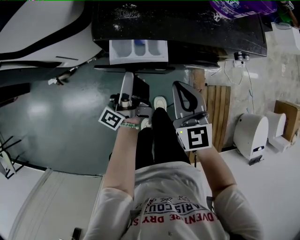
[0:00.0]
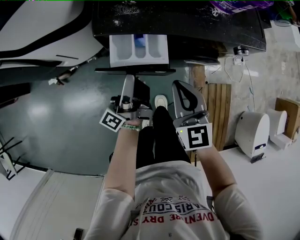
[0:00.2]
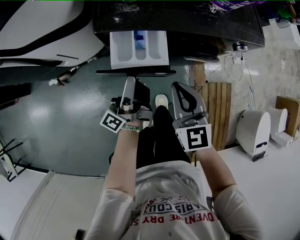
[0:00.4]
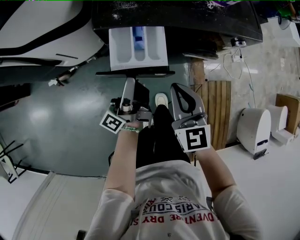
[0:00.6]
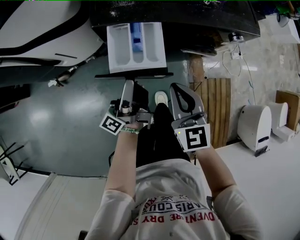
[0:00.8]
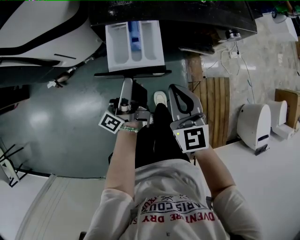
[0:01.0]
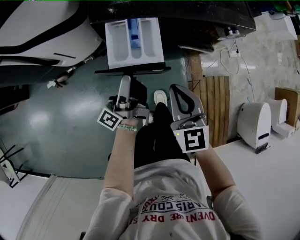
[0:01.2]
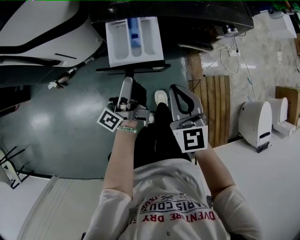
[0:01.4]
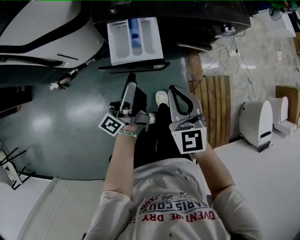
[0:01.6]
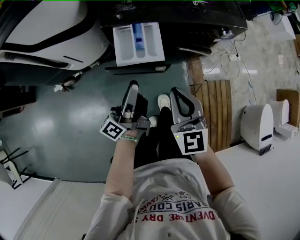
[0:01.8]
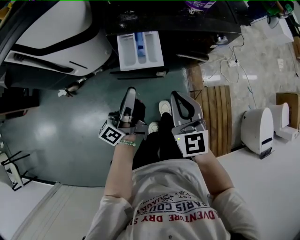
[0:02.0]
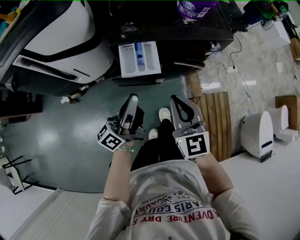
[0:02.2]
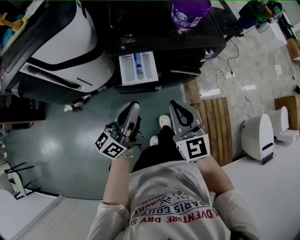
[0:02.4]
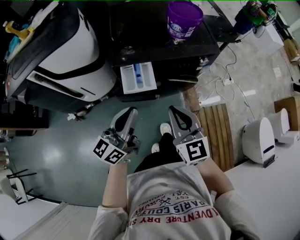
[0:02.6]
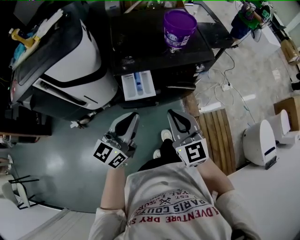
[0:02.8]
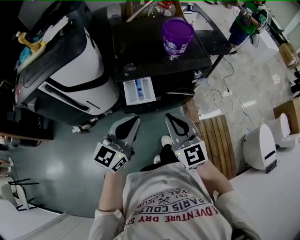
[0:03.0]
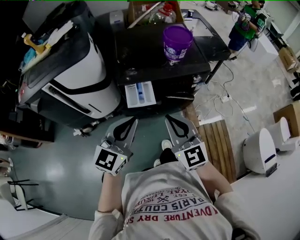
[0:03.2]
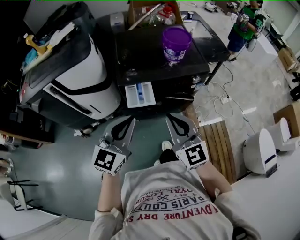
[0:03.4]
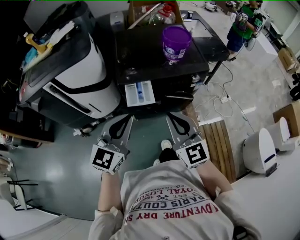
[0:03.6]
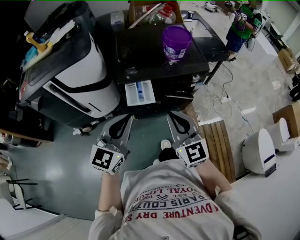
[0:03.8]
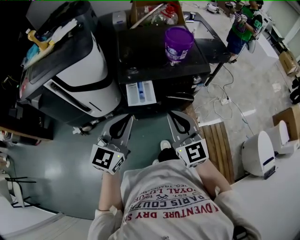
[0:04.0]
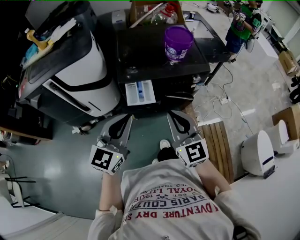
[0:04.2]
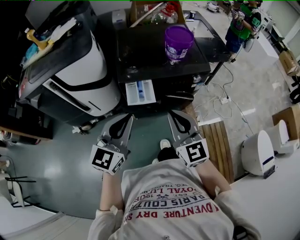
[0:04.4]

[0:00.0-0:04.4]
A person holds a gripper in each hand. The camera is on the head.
0:00.0 to 0:01.4: Both grippers travel together backward, some 10 cm.
0:01.4 to 0:03.0: The two grippers go approximately 25 cm upward. The left gripper rotates around the line of its fingers by approximately 70 degrees, clockwise from behind, and closes its fingers.
0:03.0 to 0:04.4: There are only small adjustments of the grippers.

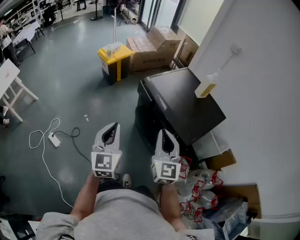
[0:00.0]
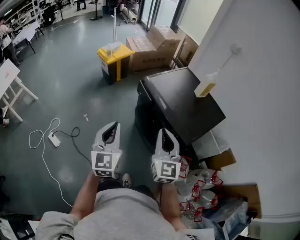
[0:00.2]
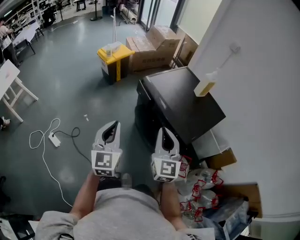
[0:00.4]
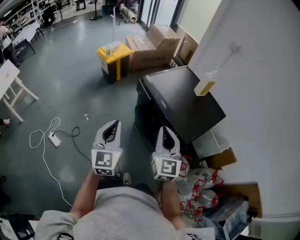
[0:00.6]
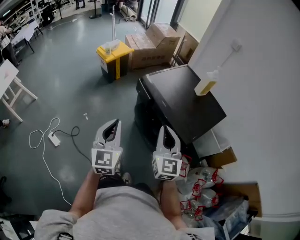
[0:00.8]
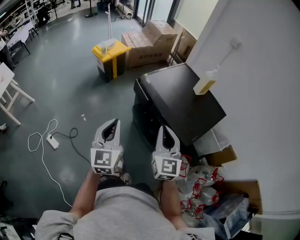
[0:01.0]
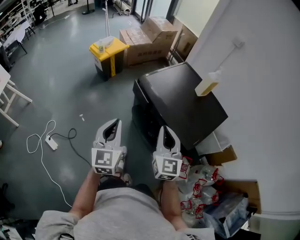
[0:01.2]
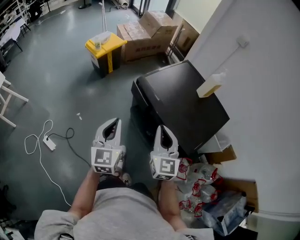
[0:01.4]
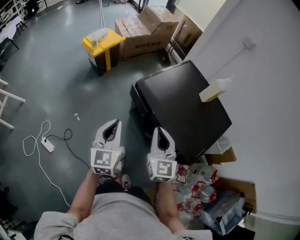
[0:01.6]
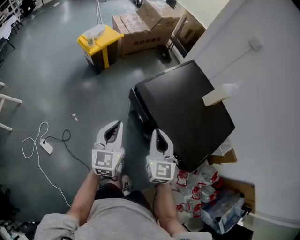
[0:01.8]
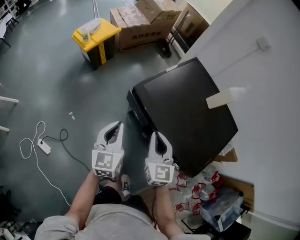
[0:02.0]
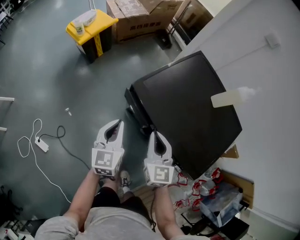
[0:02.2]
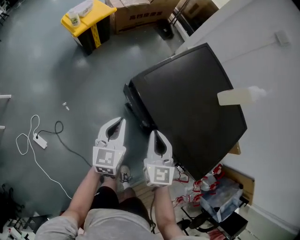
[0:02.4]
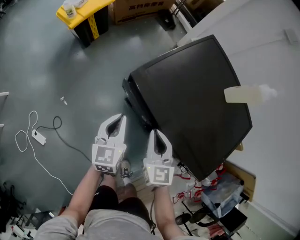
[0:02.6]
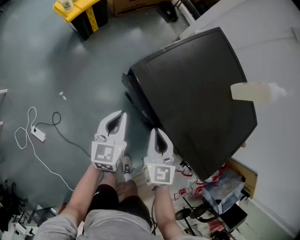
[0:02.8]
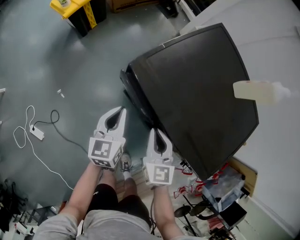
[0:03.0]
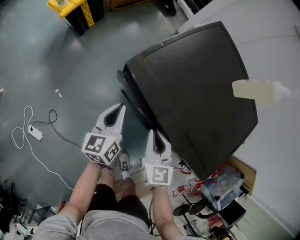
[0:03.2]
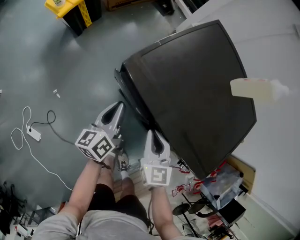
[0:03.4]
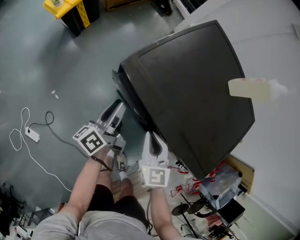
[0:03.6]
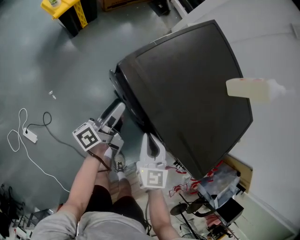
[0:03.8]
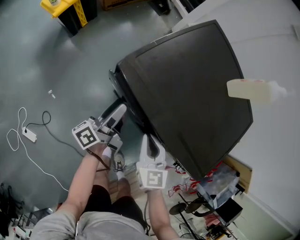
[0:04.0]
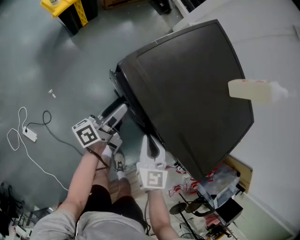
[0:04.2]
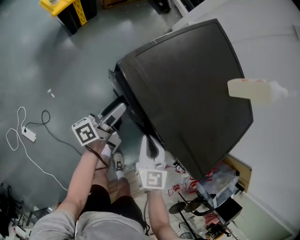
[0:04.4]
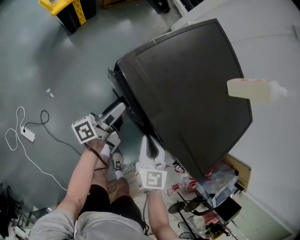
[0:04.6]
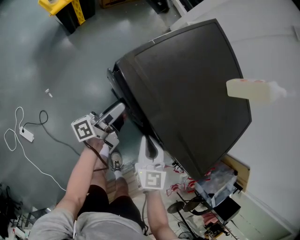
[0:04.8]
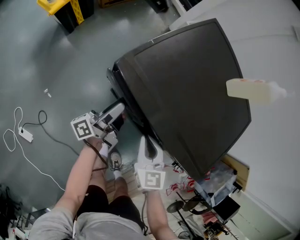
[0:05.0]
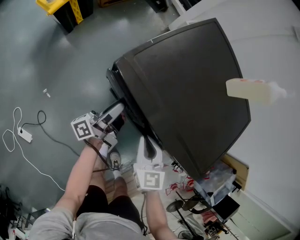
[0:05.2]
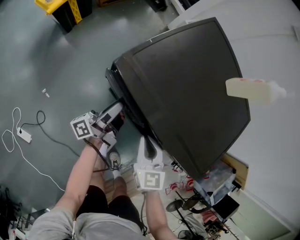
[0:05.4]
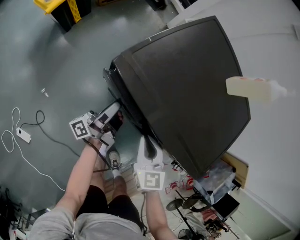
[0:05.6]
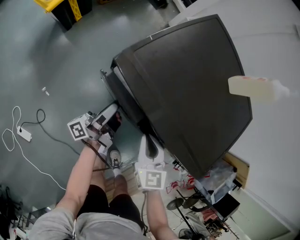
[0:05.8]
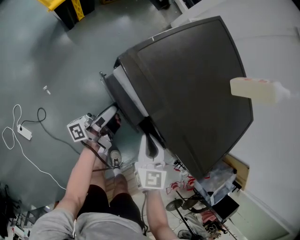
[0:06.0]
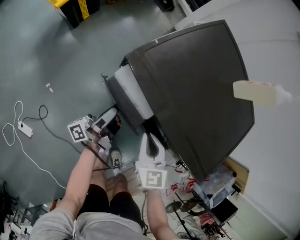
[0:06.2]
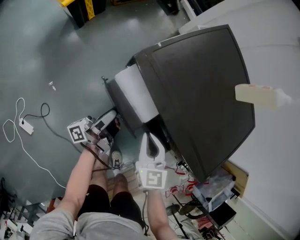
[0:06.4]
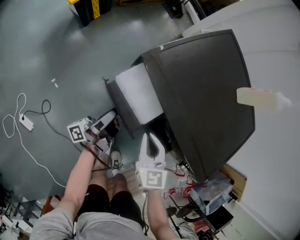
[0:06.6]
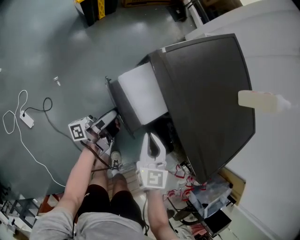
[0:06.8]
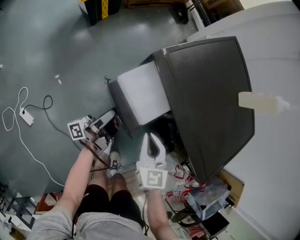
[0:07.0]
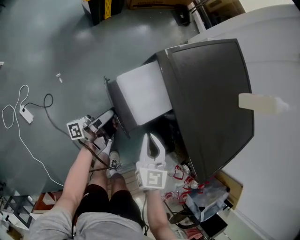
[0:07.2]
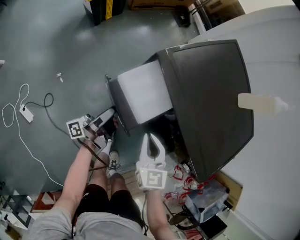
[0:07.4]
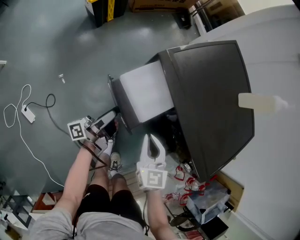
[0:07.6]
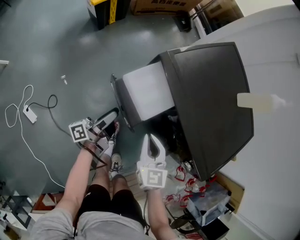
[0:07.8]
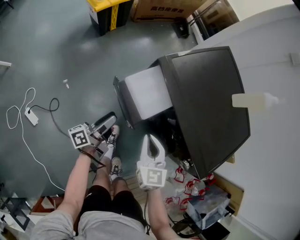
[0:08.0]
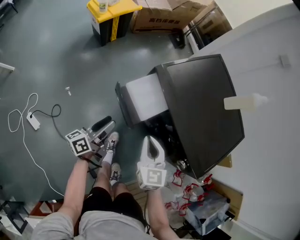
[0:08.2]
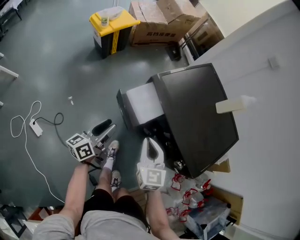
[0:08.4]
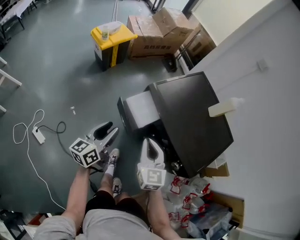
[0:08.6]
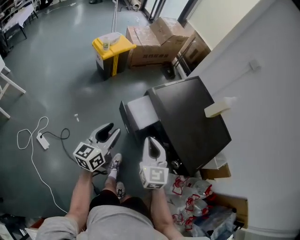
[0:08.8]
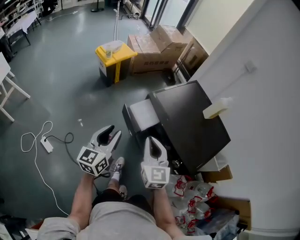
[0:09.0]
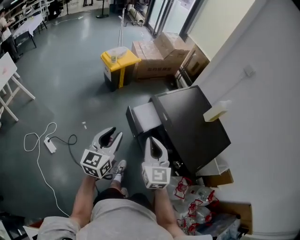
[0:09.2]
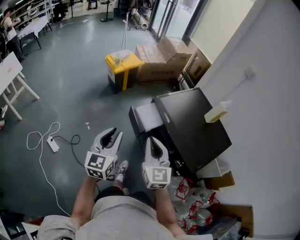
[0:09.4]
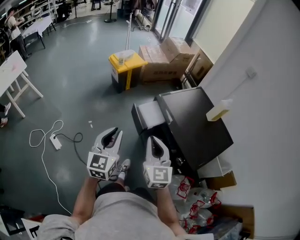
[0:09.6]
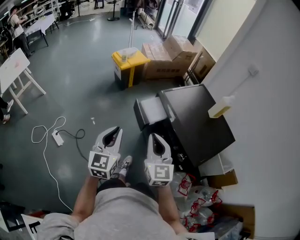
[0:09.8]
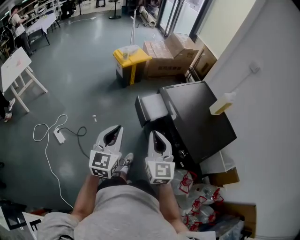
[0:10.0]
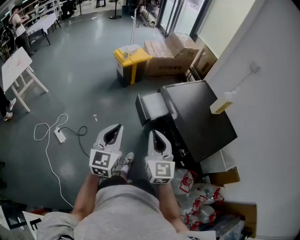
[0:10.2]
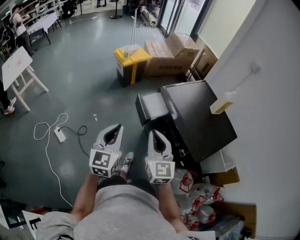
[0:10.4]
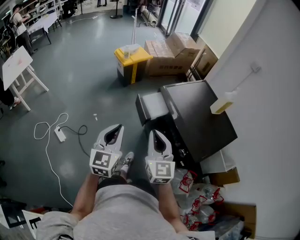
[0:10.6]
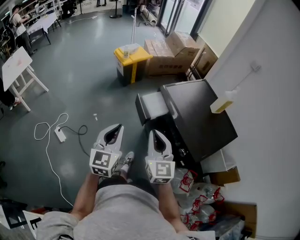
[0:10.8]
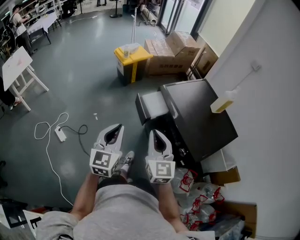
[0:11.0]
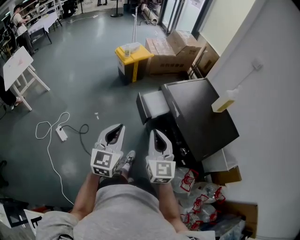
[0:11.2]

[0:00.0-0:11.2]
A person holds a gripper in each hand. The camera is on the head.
0:00.0 to 0:01.6: The left gripper heads forward, covering roughly 20 cm, while the right gripper shifts about 20 cm forward and downward.
0:01.6 to 0:03.2: The left gripper shifts some 30 cm downward and forward, and turns by roughly 30 degrees. Meanwhile the right gripper is displaced downward by approximately 25 cm.
0:03.2 to 0:04.8: The left gripper rotates around the line of its fingers by roughly 50 degrees, counterclockwise from behind, and opens up.
0:04.8 to 0:06.4: The left gripper closes up.
0:06.4 to 0:08.0: Both grippers travel together backward and to the left, some 15 cm. The left gripper changes its angle by approximately 30 degrees.
0:08.0 to 0:09.6: The grippers both shift upward and backward by roughly 35 cm. The left gripper twists about 70 degrees clockwise, seen from behind, and closes its fingers, while the right gripper rotates some 20 degrees.
0:09.6 to 0:11.2: The grippers move only a little.

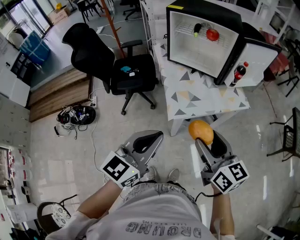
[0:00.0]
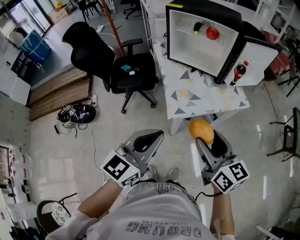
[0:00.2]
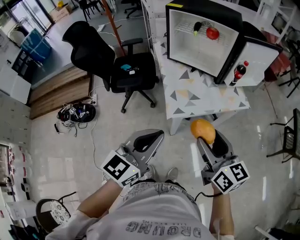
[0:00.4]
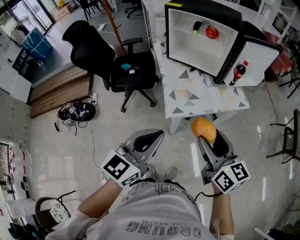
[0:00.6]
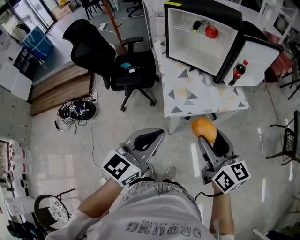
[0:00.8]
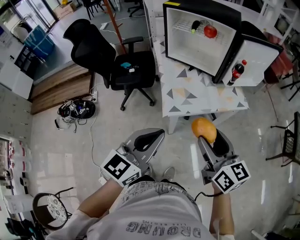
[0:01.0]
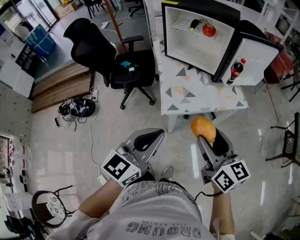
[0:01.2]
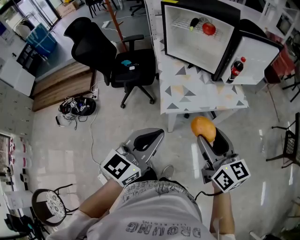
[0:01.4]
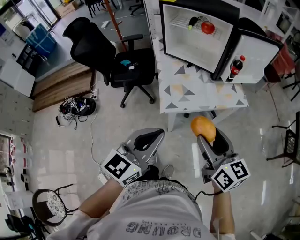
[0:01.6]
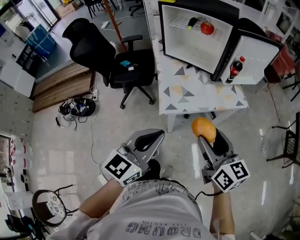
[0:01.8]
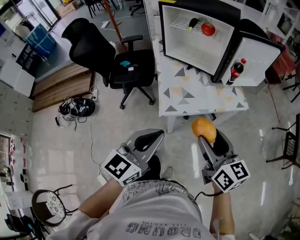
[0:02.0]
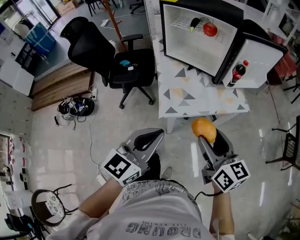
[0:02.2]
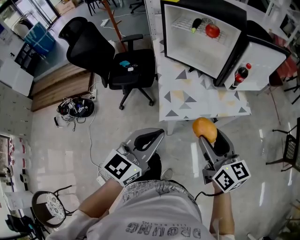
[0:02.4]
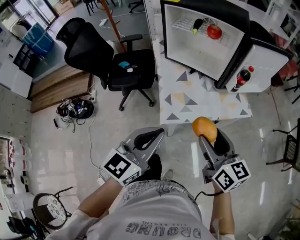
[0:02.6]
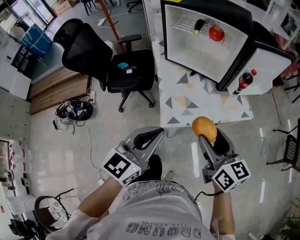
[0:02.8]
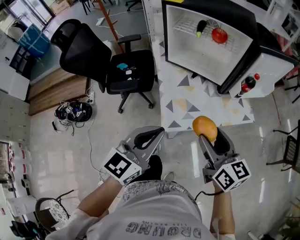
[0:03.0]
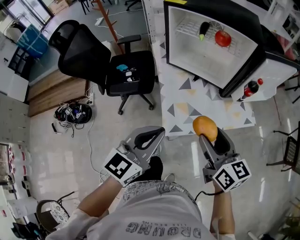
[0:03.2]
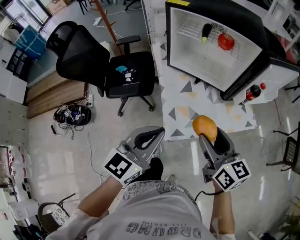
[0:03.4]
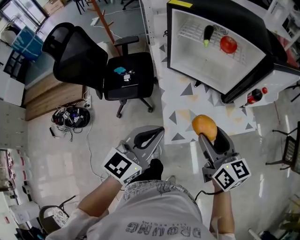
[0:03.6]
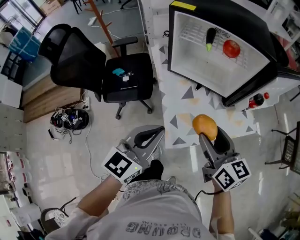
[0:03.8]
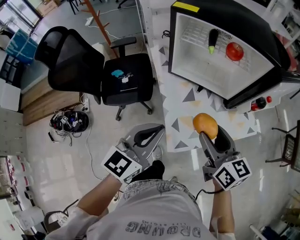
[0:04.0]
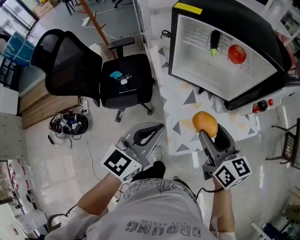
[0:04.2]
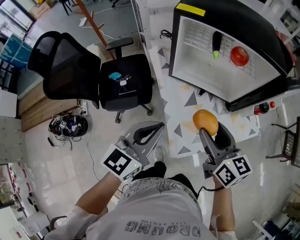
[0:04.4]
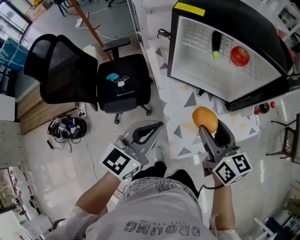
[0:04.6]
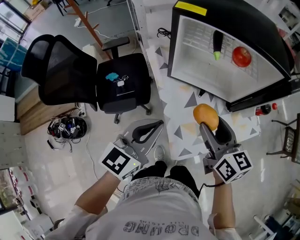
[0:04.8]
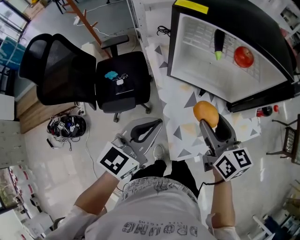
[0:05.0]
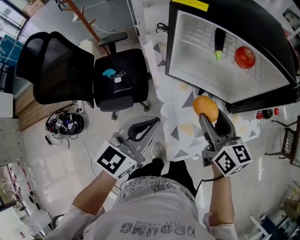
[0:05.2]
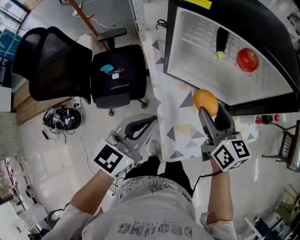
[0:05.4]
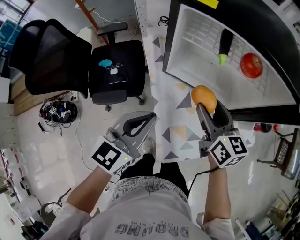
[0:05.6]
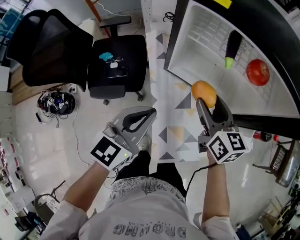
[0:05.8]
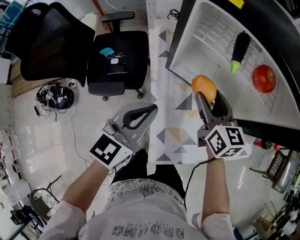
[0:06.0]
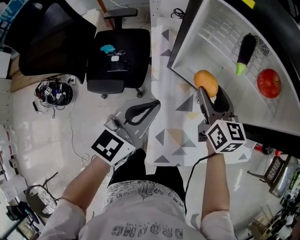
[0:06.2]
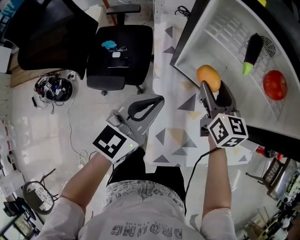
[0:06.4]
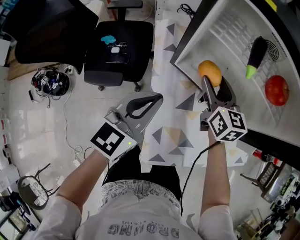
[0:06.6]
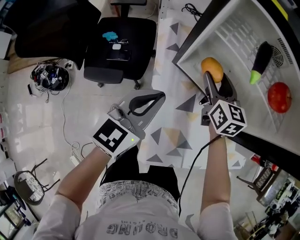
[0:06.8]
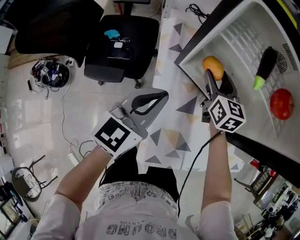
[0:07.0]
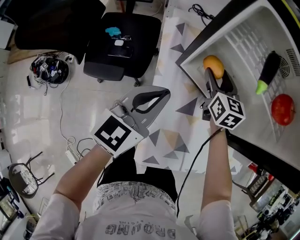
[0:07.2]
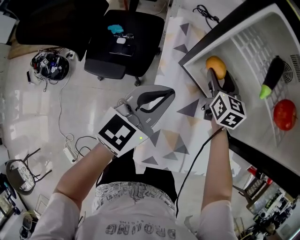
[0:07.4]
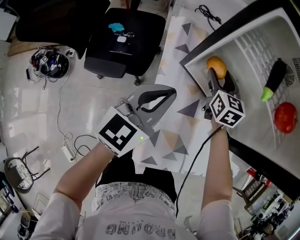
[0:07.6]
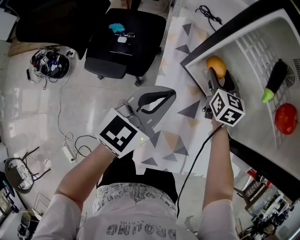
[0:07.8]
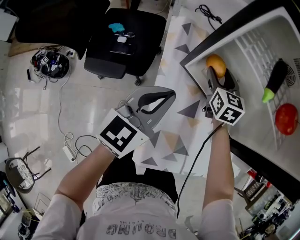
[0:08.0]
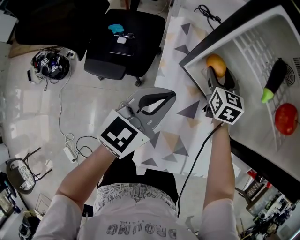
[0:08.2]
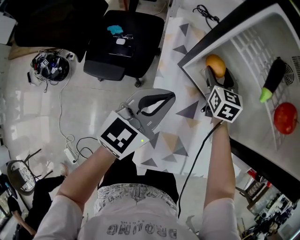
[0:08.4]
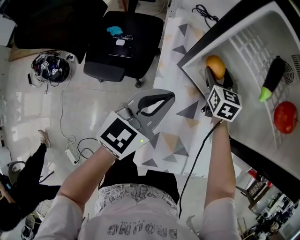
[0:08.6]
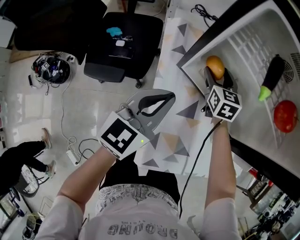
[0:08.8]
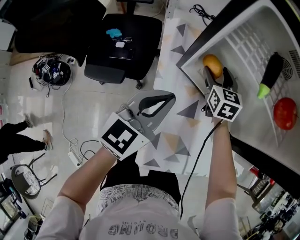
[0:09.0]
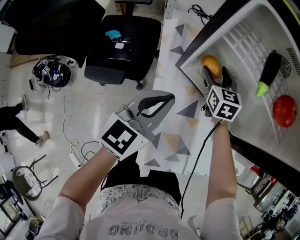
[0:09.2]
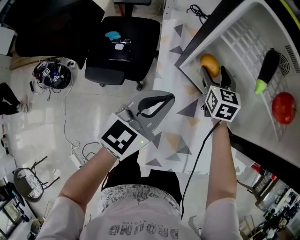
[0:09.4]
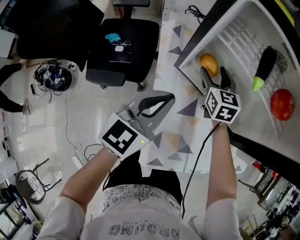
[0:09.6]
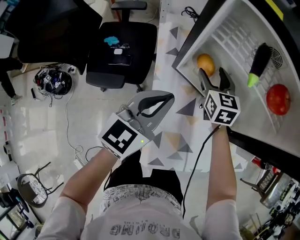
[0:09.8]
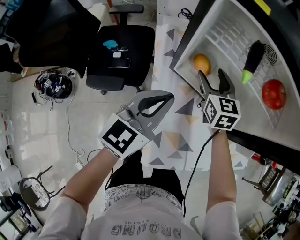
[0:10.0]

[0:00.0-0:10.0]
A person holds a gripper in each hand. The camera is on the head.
0:00.0 to 0:01.4: The grippers both shift to the right by some 10 cm.
0:01.4 to 0:02.8: The grippers both shift forward by approximately 10 cm.
0:02.8 to 0:04.2: The grippers both shift forward and to the left by approximately 20 cm.
0:04.2 to 0:05.8: The right gripper moves forward, some 20 cm. The left gripper heads forward and downward, covering approximately 15 cm.
0:05.8 to 0:07.2: The left gripper heads forward and downward, covering some 10 cm, while the right gripper heads forward and downward, covering some 20 cm.
0:07.2 to 0:08.6: The right gripper changes place by approximately 5 cm.
0:08.6 to 0:10.0: The right gripper moves upward and backward, roughly 10 cm.
